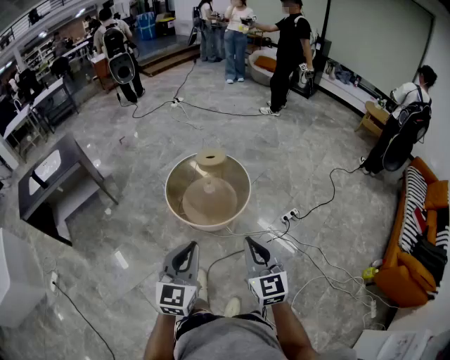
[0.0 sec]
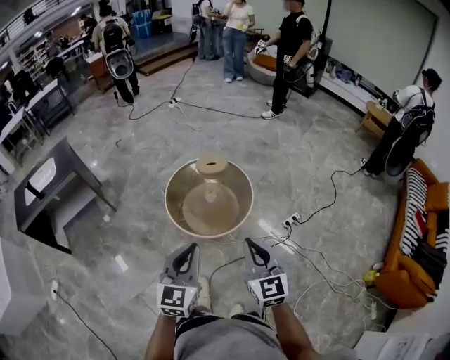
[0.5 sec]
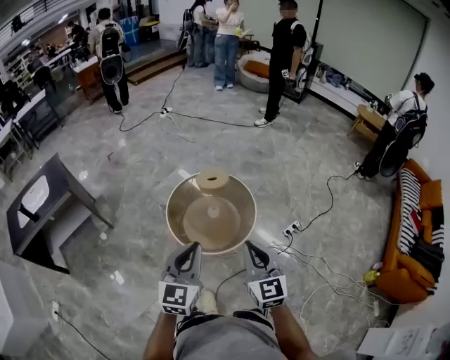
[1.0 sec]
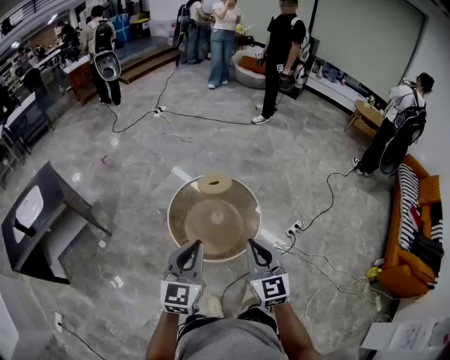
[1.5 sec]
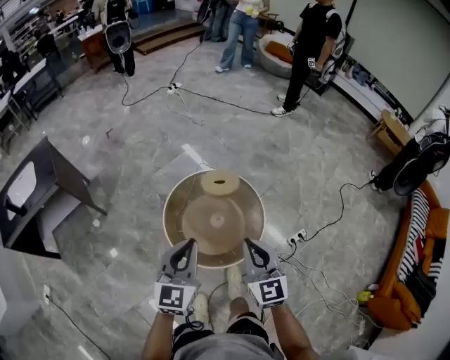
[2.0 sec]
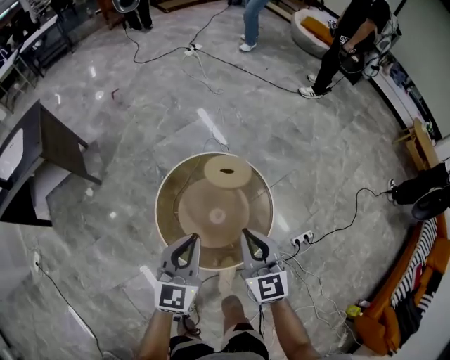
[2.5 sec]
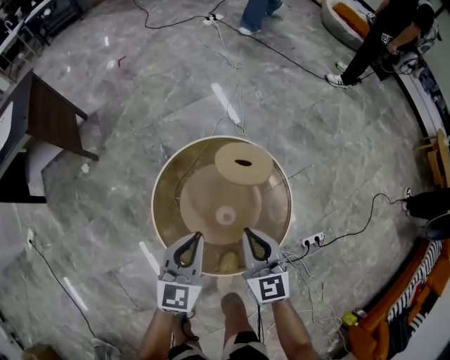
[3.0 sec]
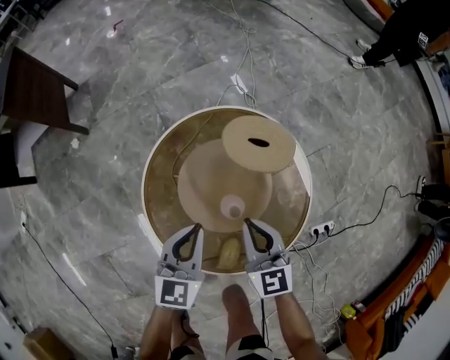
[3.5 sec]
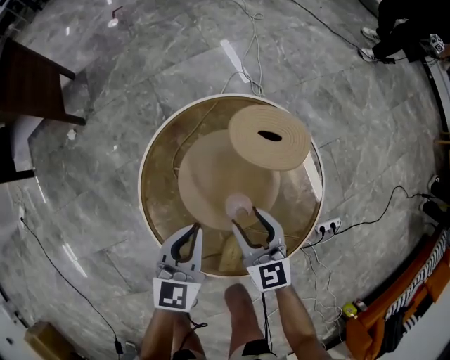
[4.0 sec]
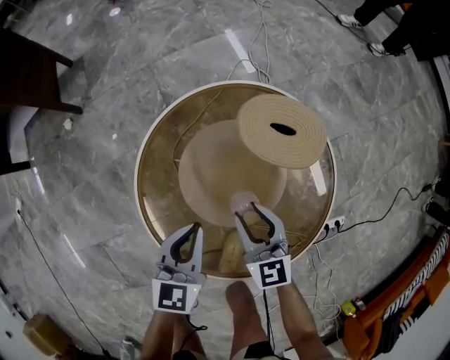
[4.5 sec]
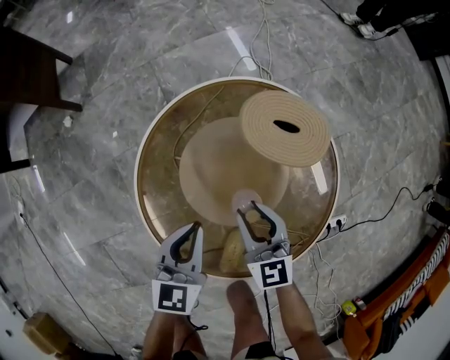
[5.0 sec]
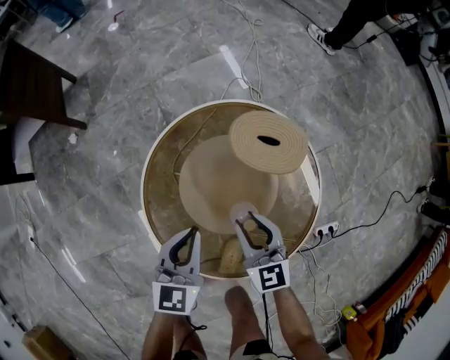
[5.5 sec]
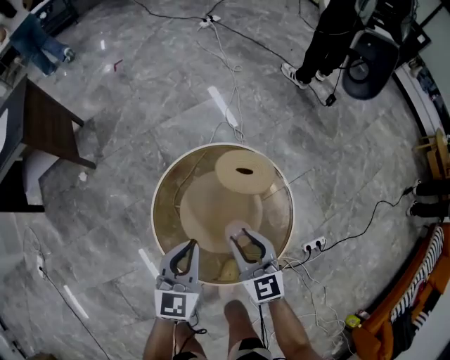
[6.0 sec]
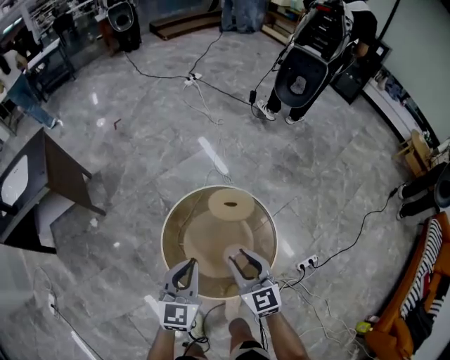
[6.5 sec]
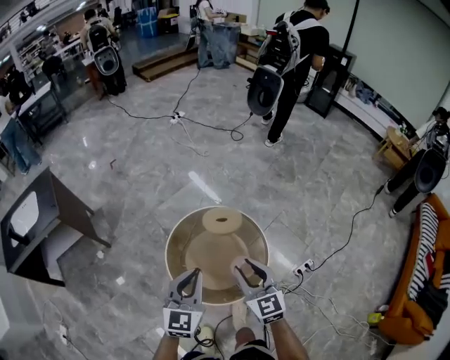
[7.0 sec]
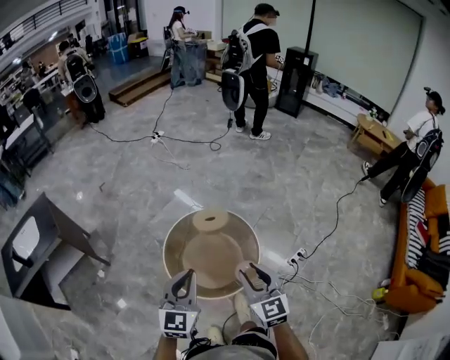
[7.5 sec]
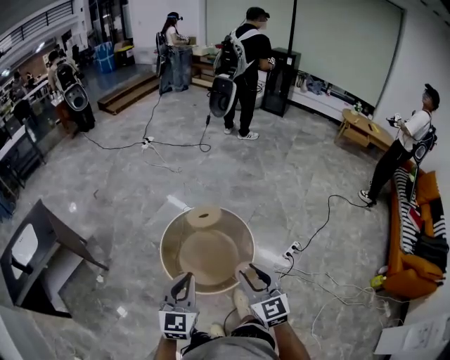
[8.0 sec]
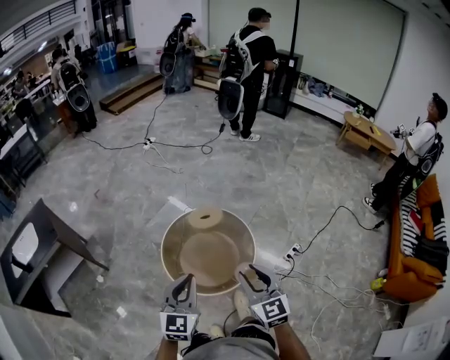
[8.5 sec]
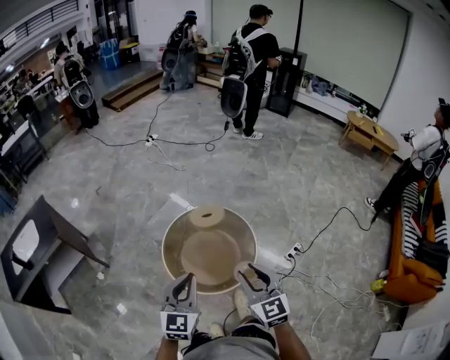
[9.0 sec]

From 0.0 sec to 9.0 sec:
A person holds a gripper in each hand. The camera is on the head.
From 0.0 sec to 2.0 sec: The two grippers travel together, forward, some 40 cm.
From 2.0 sec to 4.5 sec: The left gripper travels downward by about 50 cm, and changes its angle by approximately 30 degrees, while the right gripper shifts approximately 60 cm downward and forward, turns by some 30 degrees, and opens up.
From 4.5 sec to 7.0 sec: The grippers both shift upward by approximately 50 cm. The left gripper swivels about 30 degrees. The right gripper rotates roughly 20 degrees.
From 7.0 sec to 9.0 sec: The two grippers go roughly 15 cm backward.

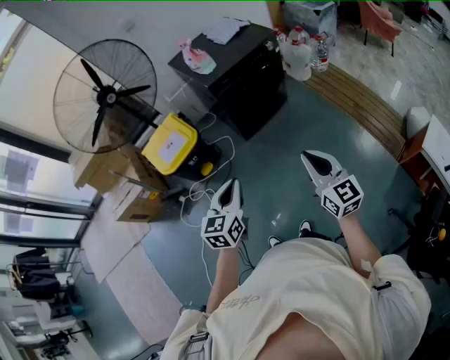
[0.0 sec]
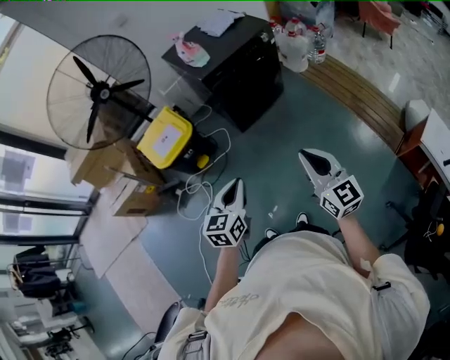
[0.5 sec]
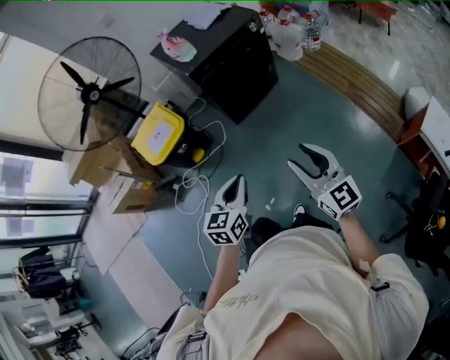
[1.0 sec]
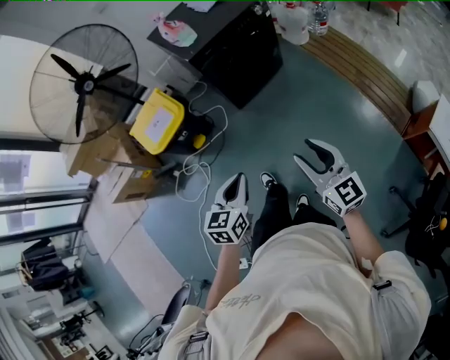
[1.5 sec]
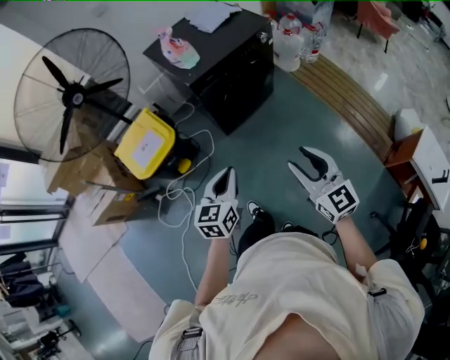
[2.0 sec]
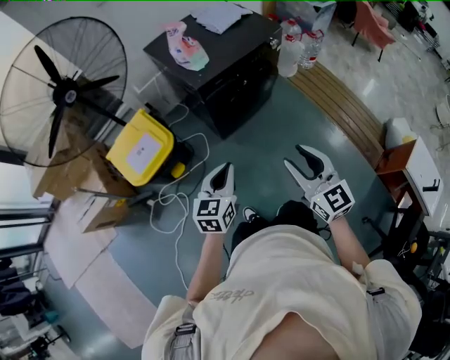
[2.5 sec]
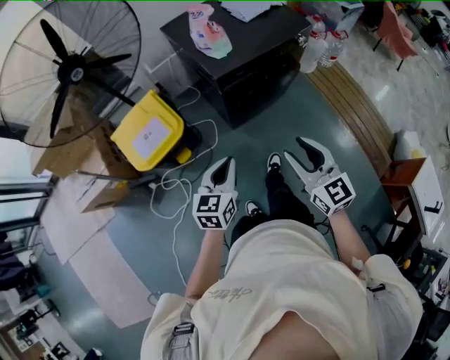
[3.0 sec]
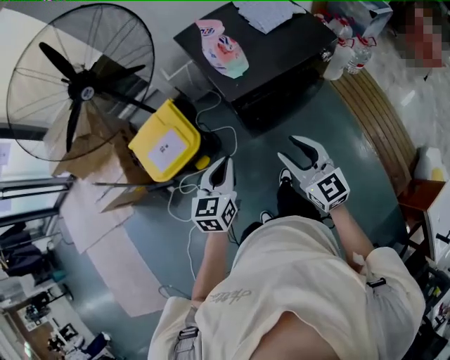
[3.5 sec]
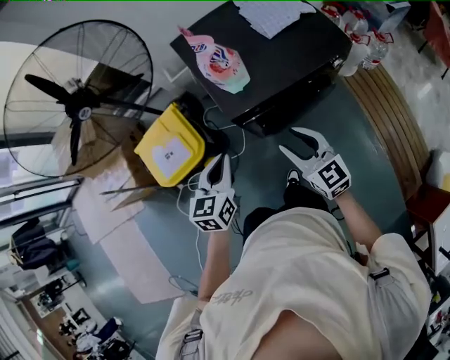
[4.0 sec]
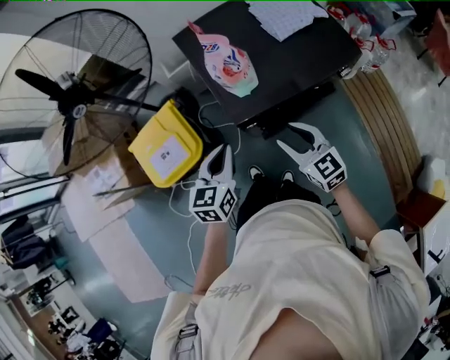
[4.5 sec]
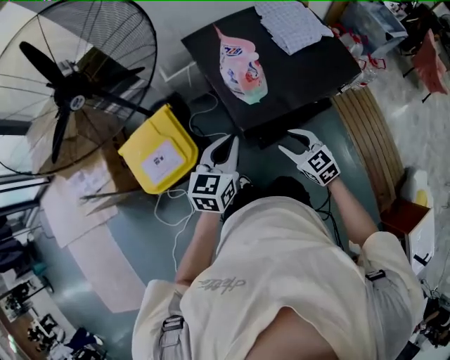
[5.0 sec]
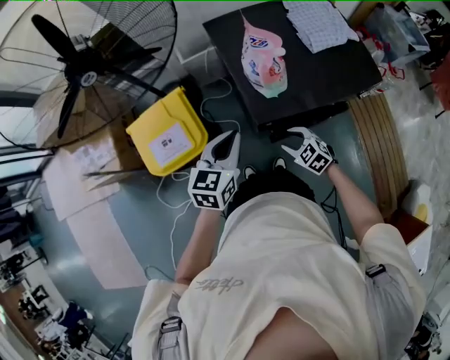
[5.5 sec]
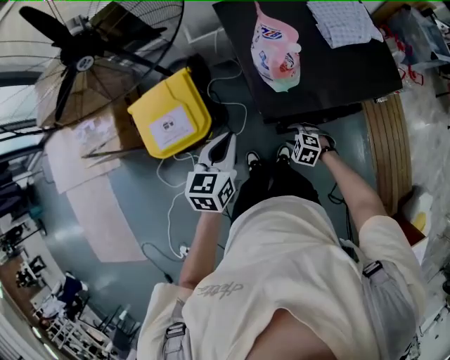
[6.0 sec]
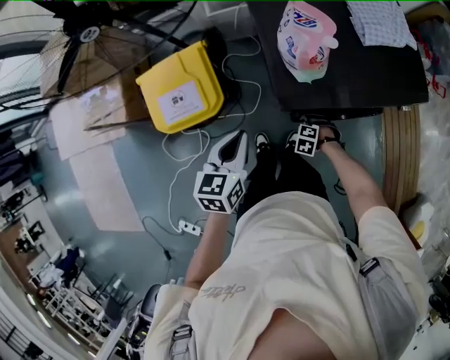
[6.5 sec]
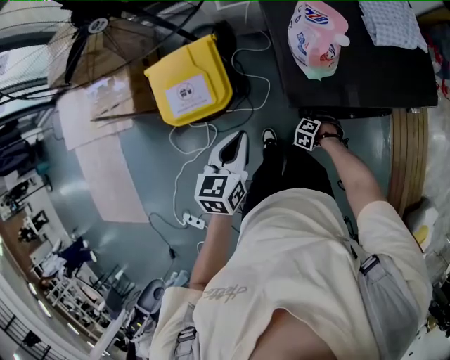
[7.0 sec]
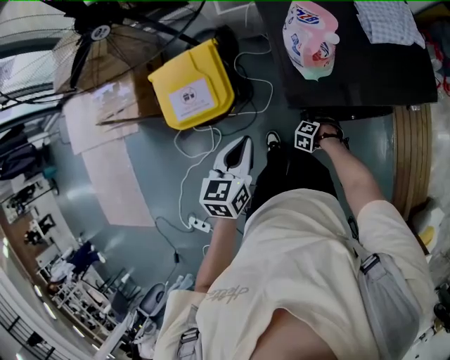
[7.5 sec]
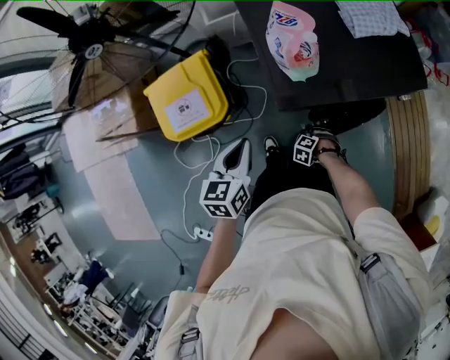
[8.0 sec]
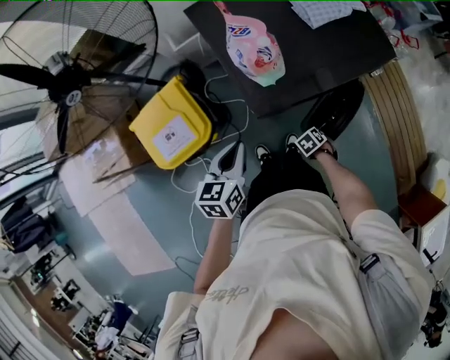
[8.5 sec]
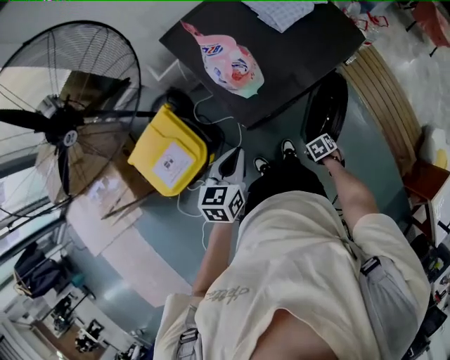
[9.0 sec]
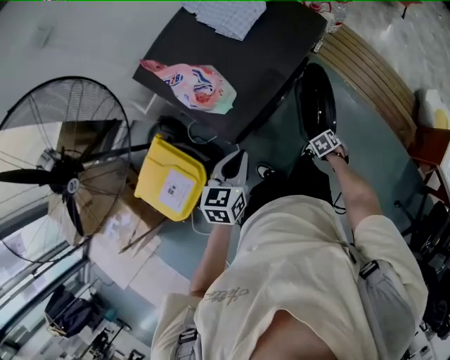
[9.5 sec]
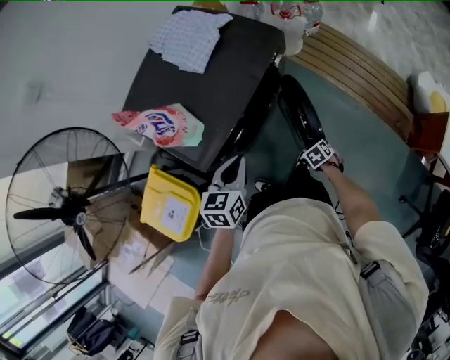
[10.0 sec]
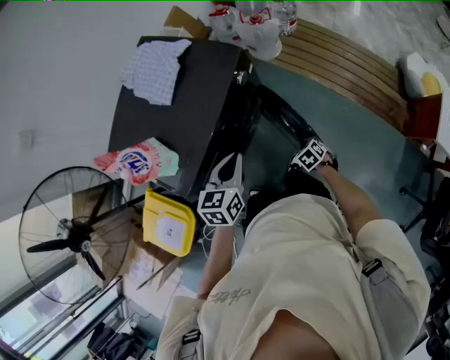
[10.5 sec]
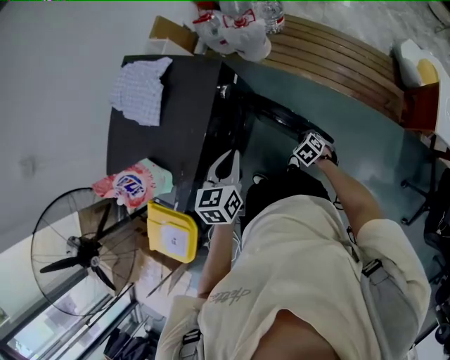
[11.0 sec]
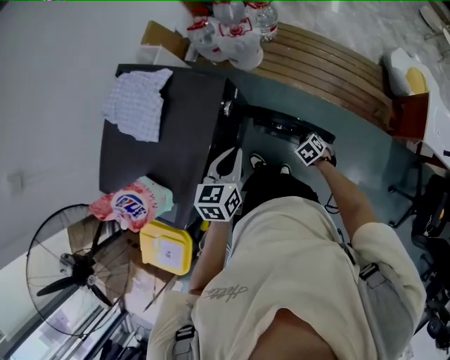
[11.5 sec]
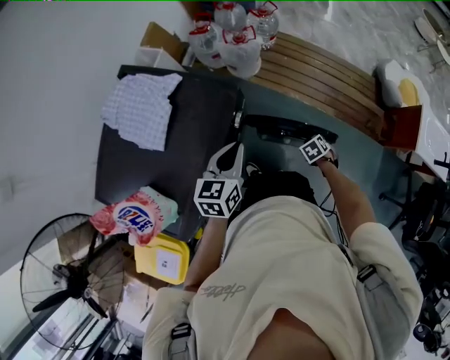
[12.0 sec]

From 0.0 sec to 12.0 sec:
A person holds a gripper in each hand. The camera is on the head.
From 0.0 sec to 2.0 sec: Both grippers travel together forward, roughly 10 cm. The right gripper opens its fingers.
From 2.0 sec to 4.0 sec: The grippers both shift forward by some 35 cm. The right gripper turns by about 20 degrees.
From 4.0 sec to 6.0 sec: The right gripper is displaced downward by approximately 30 cm, and tips its fingers downward by about 60 degrees, while the left gripper shifts some 10 cm forward.
From 6.0 sec to 8.0 sec: The right gripper travels downward by roughly 10 cm, rotates some 30 degrees, and closes up.
From 8.0 sec to 10.0 sec: The right gripper changes place by some 25 cm, and rotates around the line of its fingers by approximately 90 degrees, clockwise from behind, while the left gripper changes place by approximately 20 cm, and changes its angle by roughly 40 degrees.
From 10.0 sec to 12.0 sec: The left gripper shifts by about 30 cm. Meanwhile the right gripper moves about 25 cm.

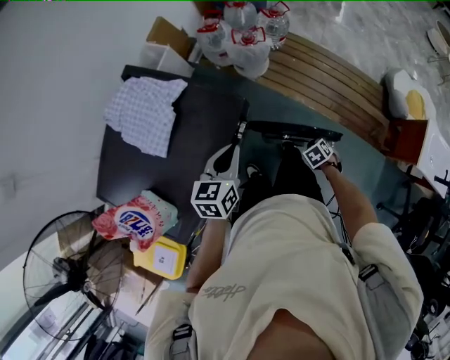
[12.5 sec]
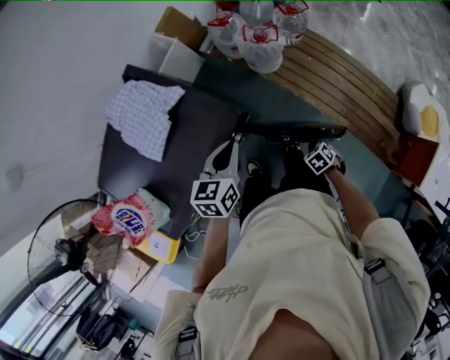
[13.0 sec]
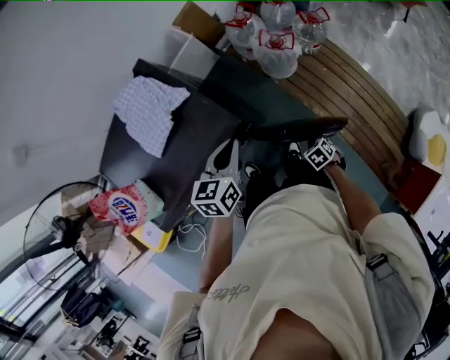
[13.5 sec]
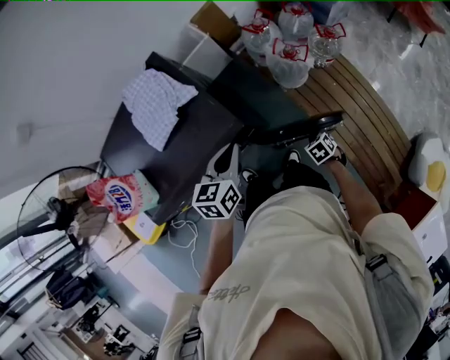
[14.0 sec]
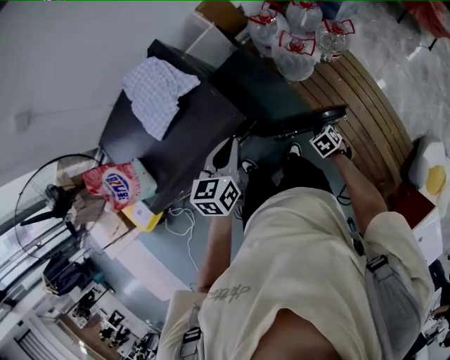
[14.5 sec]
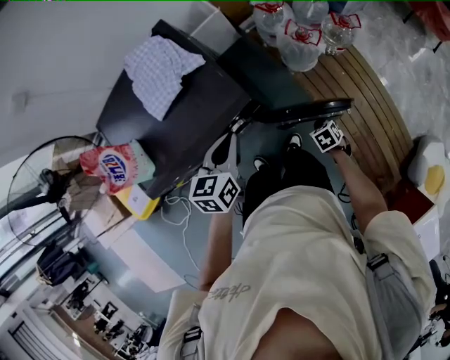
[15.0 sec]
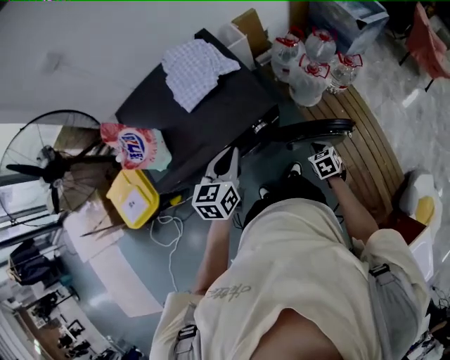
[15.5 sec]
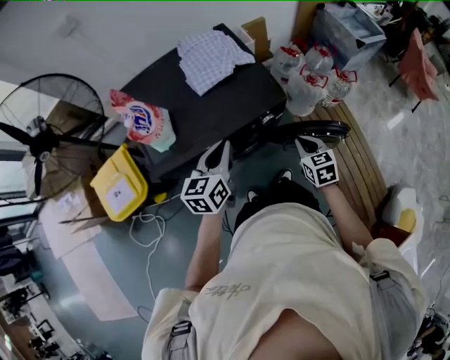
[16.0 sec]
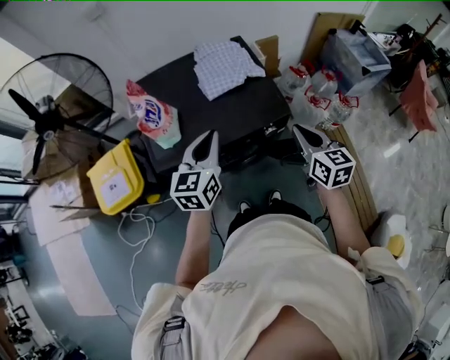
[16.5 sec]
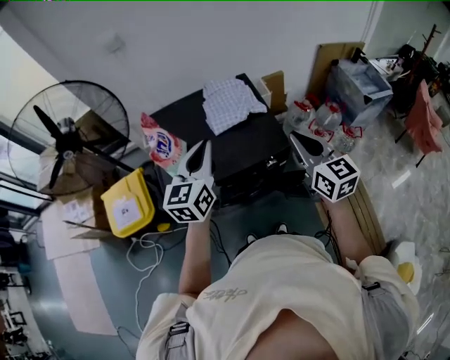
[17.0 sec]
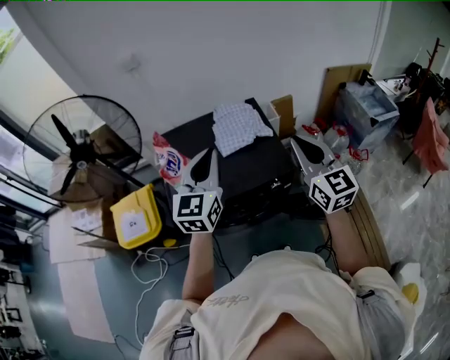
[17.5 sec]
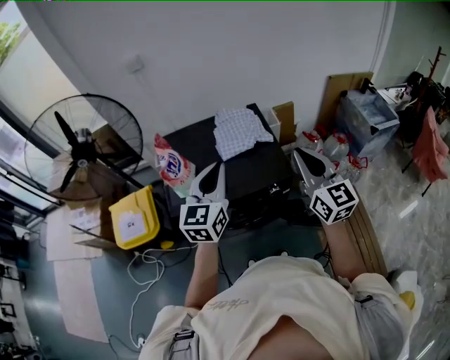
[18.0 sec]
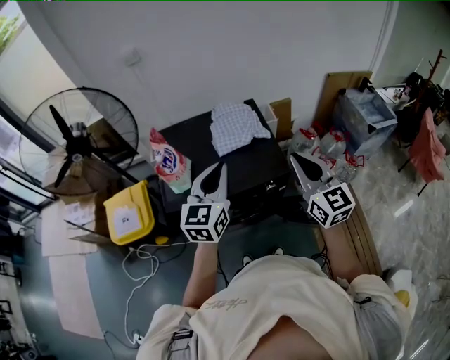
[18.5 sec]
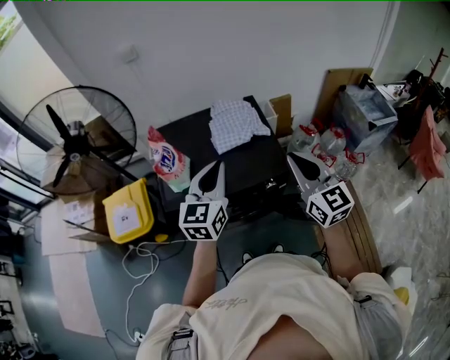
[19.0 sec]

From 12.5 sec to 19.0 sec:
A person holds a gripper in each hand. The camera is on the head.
From 12.5 sec to 14.5 sec: The right gripper moves roughly 20 cm, and swivels about 30 degrees. Meanwhile the left gripper moves some 10 cm, and changes its angle by about 30 degrees.
From 14.5 sec to 17.0 sec: The right gripper is displaced upward and to the left by some 60 cm, and points its fingers some 60 degrees further upward. Meanwhile the left gripper moves to the left and upward, about 30 cm, and angles its fingers upward, by roughly 30 degrees.
